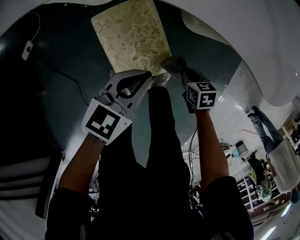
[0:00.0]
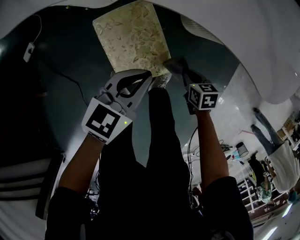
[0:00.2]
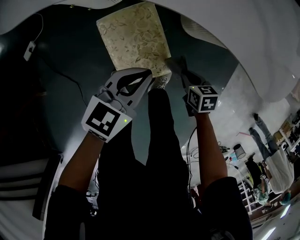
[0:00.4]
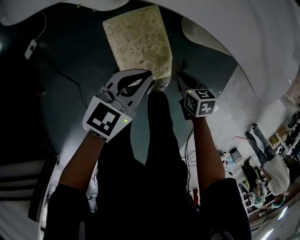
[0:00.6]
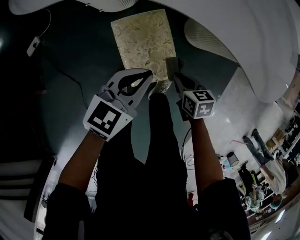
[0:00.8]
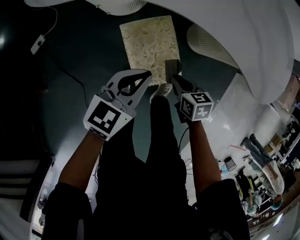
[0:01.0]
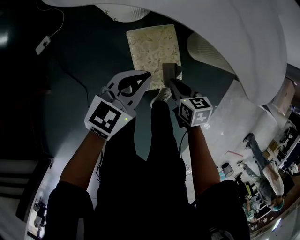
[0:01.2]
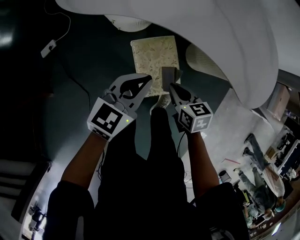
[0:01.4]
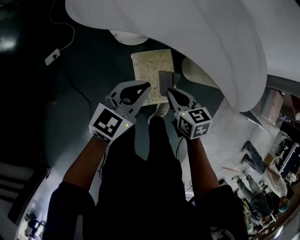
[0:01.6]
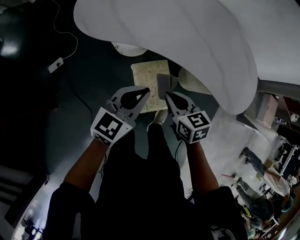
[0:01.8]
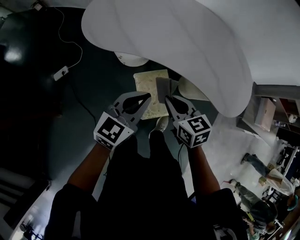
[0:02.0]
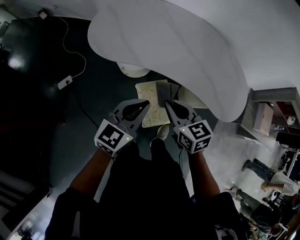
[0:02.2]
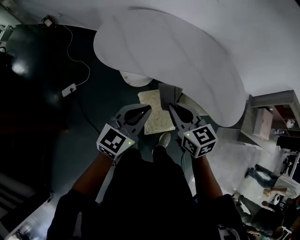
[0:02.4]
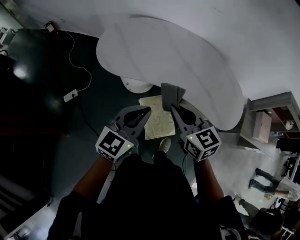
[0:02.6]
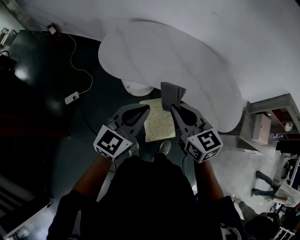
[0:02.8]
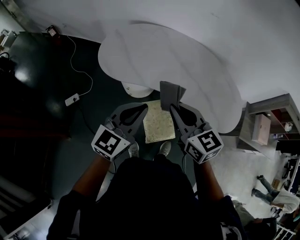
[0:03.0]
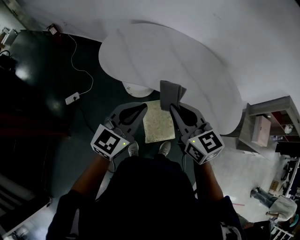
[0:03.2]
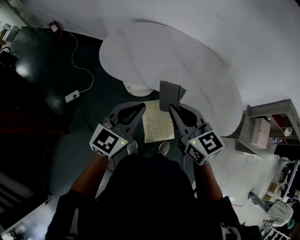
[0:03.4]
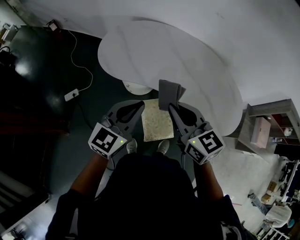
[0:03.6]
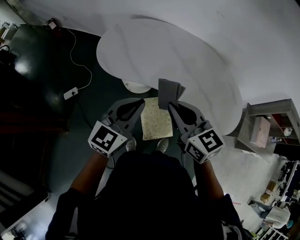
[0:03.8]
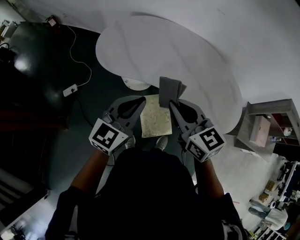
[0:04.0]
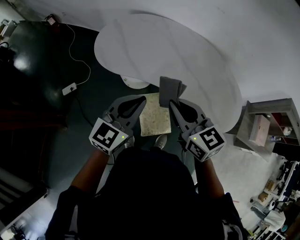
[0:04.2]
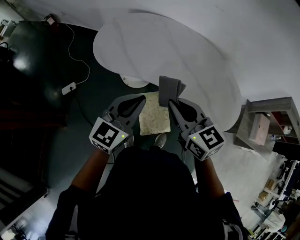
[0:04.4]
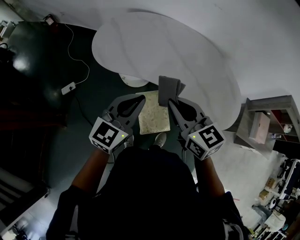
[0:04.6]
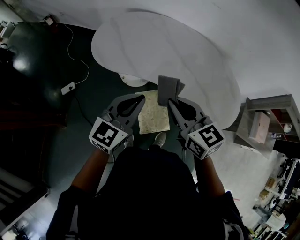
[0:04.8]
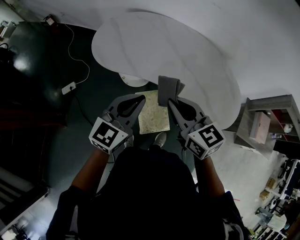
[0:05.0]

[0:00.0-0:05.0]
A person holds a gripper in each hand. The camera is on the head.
0.0 to 1.6 s: Both grippers move upward and to the left, some 30 cm. The left gripper swivels about 20 degrees, while the right gripper swivels some 30 degrees.
1.6 to 3.4 s: Both grippers move upward, roughly 30 cm. The right gripper rotates roughly 30 degrees.
3.4 to 5.0 s: There are only small adjustments of the grippers.

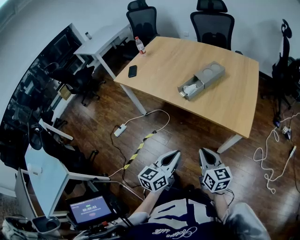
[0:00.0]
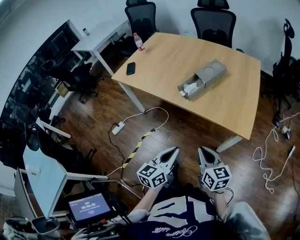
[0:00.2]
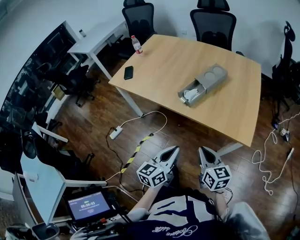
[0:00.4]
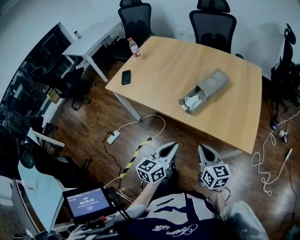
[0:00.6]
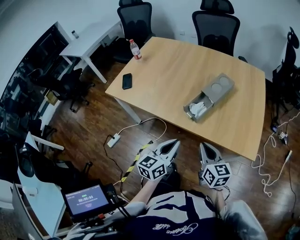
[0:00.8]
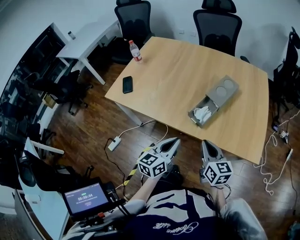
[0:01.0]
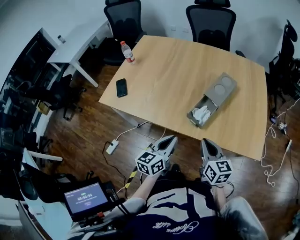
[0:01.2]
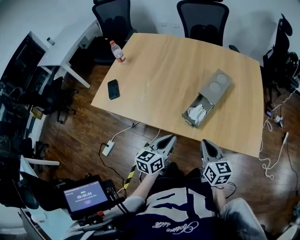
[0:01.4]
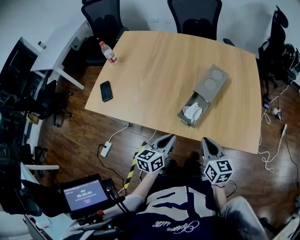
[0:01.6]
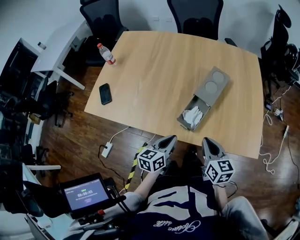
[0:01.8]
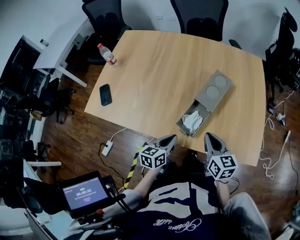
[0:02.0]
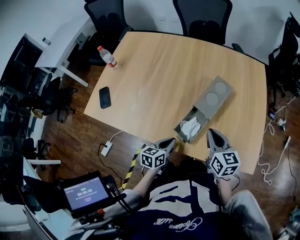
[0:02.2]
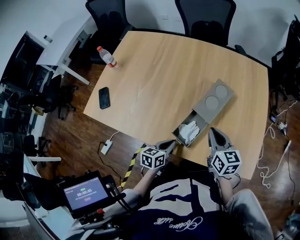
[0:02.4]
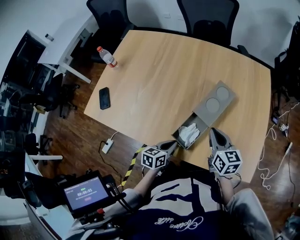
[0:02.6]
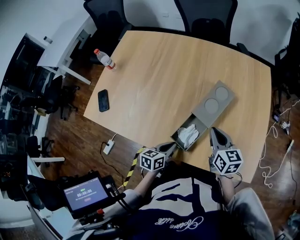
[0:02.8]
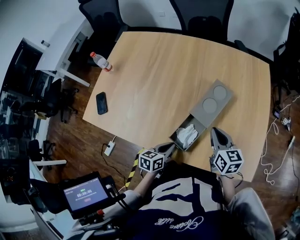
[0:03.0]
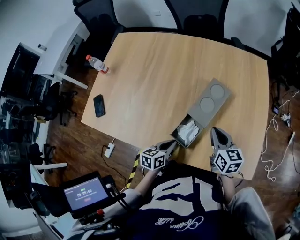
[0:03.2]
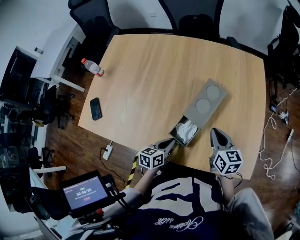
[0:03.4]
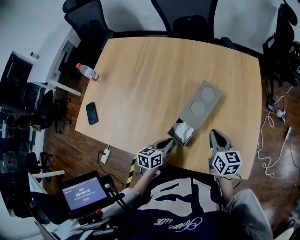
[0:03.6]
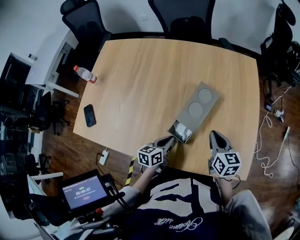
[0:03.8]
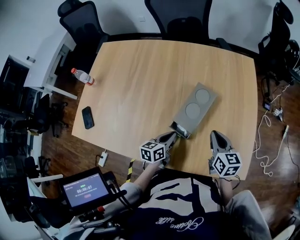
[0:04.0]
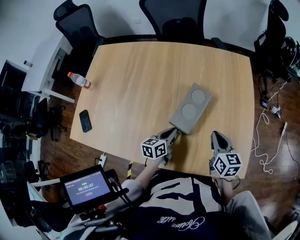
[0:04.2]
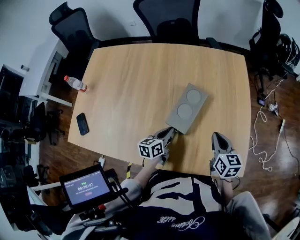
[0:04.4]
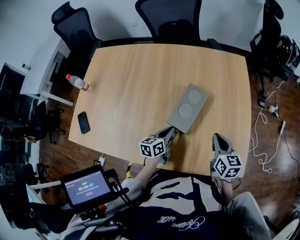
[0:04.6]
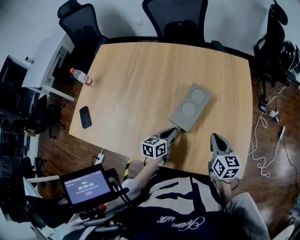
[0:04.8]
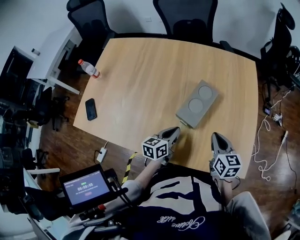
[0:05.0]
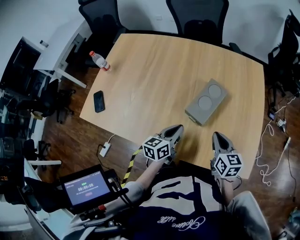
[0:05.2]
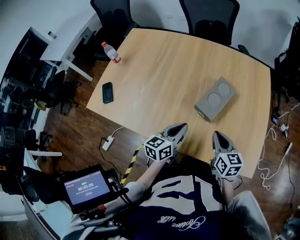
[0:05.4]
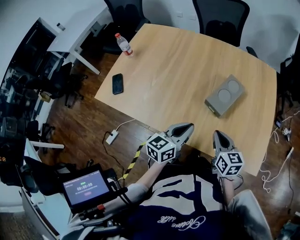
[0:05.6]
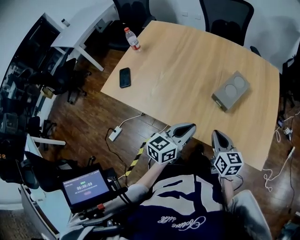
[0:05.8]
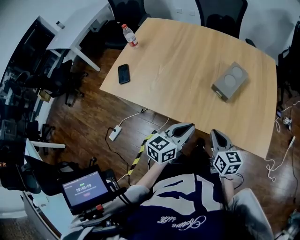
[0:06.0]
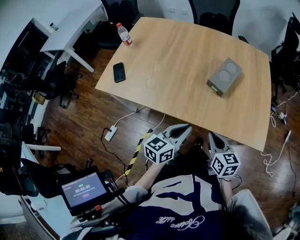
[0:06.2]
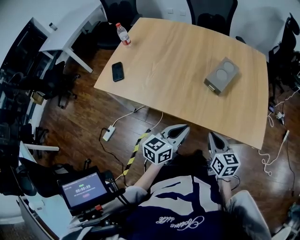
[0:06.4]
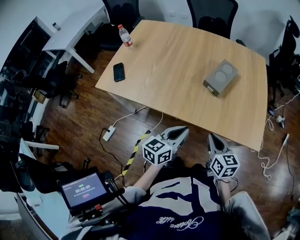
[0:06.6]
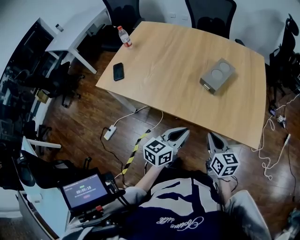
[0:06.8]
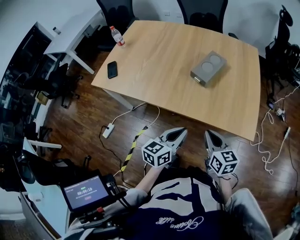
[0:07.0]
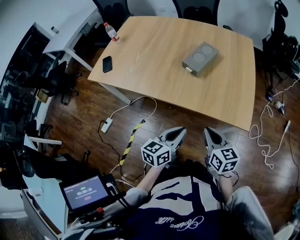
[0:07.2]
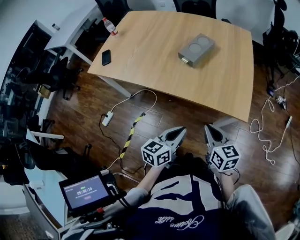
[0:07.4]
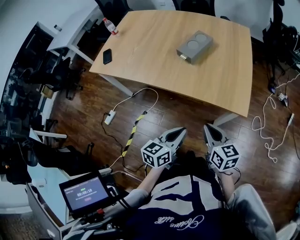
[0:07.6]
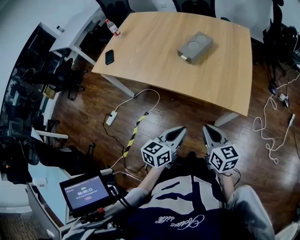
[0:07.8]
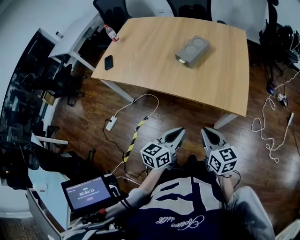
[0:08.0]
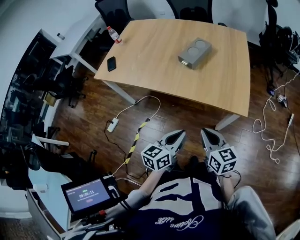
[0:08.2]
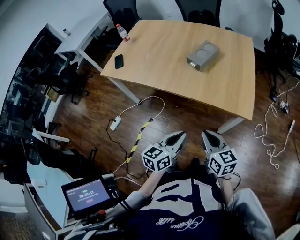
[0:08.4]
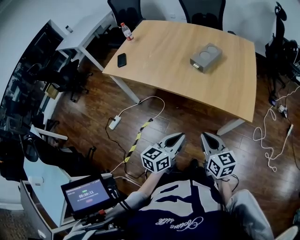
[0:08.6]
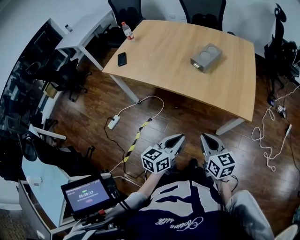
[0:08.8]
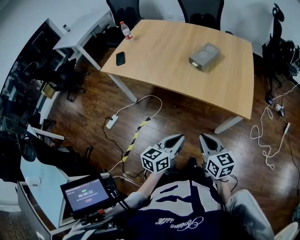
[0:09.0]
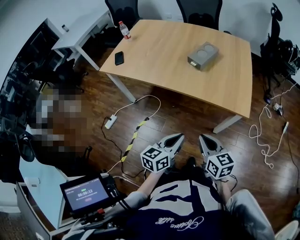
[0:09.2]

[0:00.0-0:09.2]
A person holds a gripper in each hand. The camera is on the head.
0.0 to 1.6 s: The left gripper goes roughly 35 cm forward and to the left. The right gripper heads forward, covering about 30 cm, and changes its angle by approximately 20 degrees.
1.6 to 3.0 s: The right gripper moves forward, some 20 cm. Meanwhile the left gripper travels forward and downward by about 15 cm.
3.0 to 4.6 s: The right gripper goes roughly 10 cm to the right. The left gripper moves forward and to the right, approximately 15 cm.
4.6 to 6.2 s: The right gripper heads backward and to the left, covering some 30 cm. The left gripper goes approximately 30 cm backward and upward.
6.2 to 7.6 s: Both grippers travel together to the right and backward, about 25 cm.
7.6 to 9.2 s: The grippers both shift to the left and backward by approximately 10 cm.

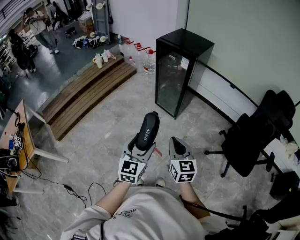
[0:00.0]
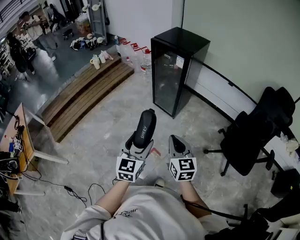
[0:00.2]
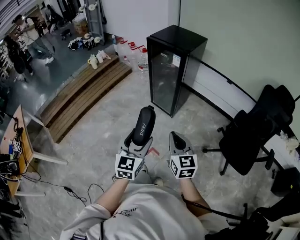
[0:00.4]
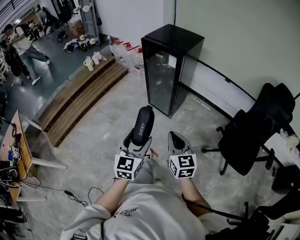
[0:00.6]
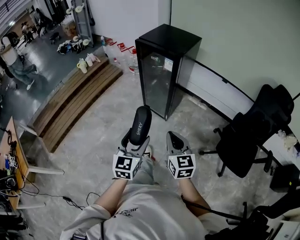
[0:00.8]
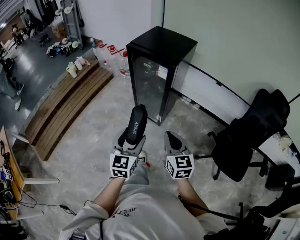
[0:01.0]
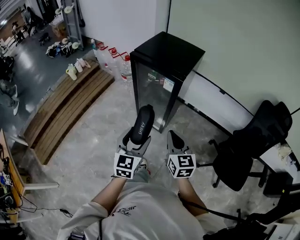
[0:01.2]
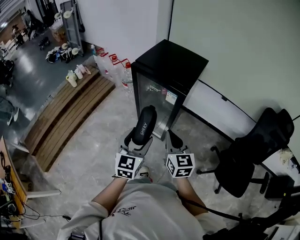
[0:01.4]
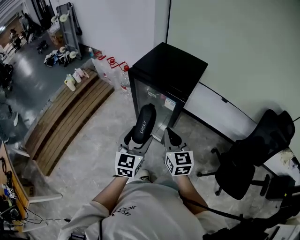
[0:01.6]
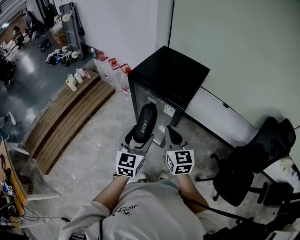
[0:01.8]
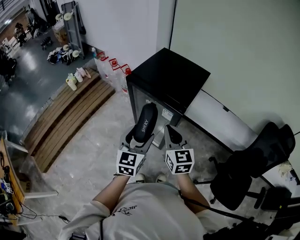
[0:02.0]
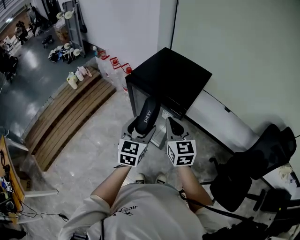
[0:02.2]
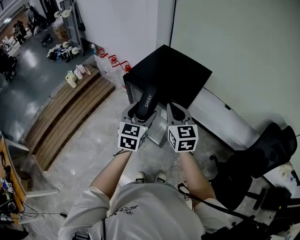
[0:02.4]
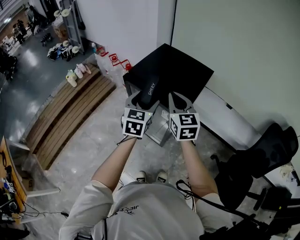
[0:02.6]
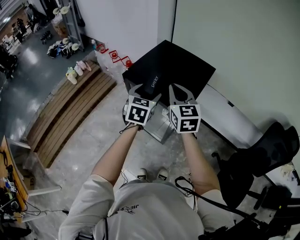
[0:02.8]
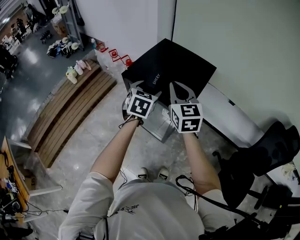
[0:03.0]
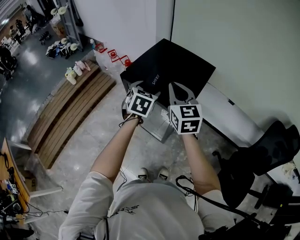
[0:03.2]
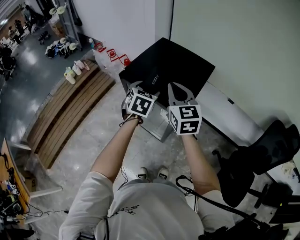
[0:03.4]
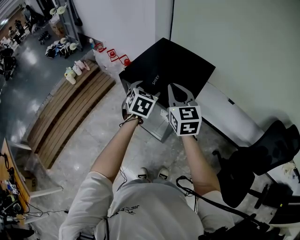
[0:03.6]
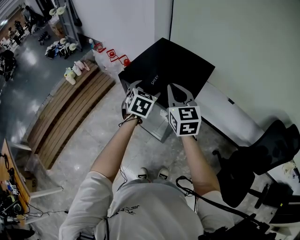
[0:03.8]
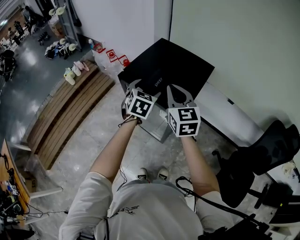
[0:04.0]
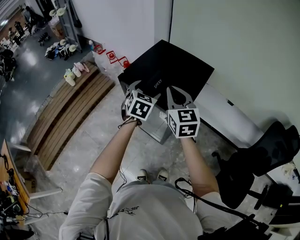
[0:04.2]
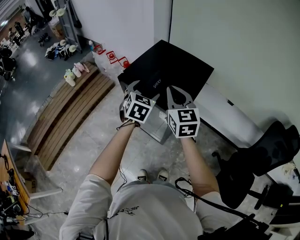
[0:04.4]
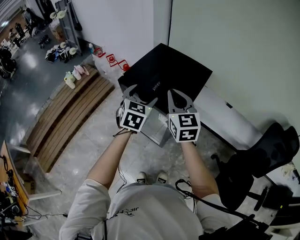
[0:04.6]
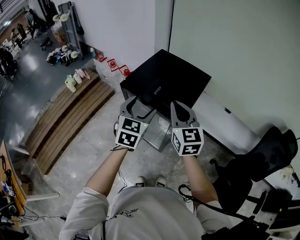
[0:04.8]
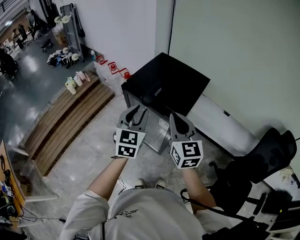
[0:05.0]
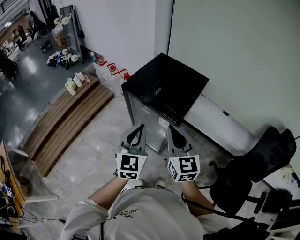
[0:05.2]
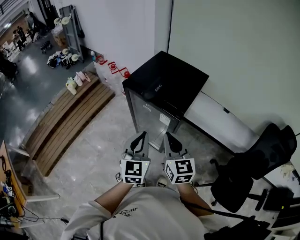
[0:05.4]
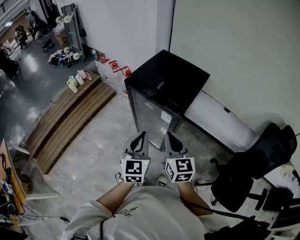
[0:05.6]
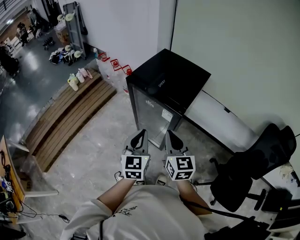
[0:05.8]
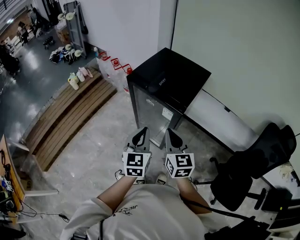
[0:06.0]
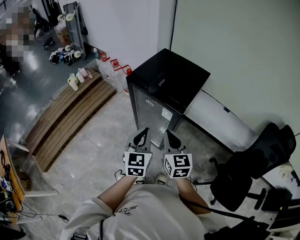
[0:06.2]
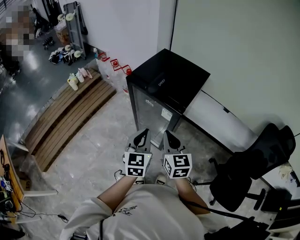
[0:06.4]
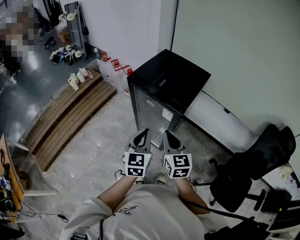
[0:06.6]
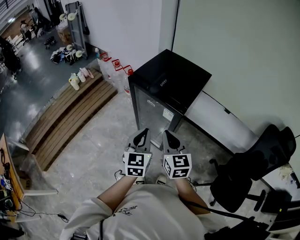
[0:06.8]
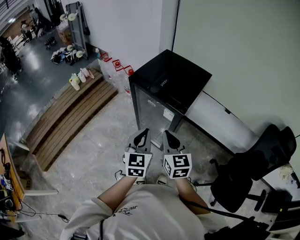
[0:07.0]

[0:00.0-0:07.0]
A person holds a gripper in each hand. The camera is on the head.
0.0 to 1.4 s: Both grippers move forward, approximately 35 cm.
1.4 to 2.8 s: Both grippers move forward, about 30 cm.
2.8 to 4.2 s: The grippers move only a little.
4.2 to 5.6 s: The two grippers go roughly 20 cm backward. The left gripper changes its angle by approximately 30 degrees, and closes.
5.6 to 7.0 s: The grippers stay close to where they were, moving slightly.

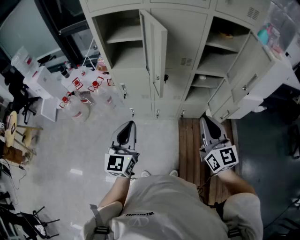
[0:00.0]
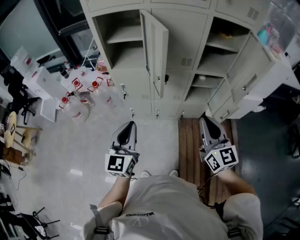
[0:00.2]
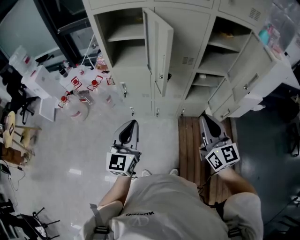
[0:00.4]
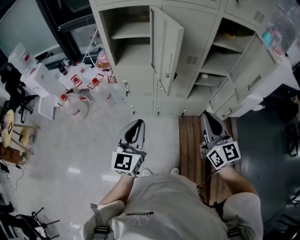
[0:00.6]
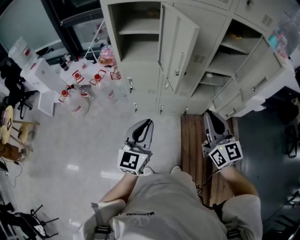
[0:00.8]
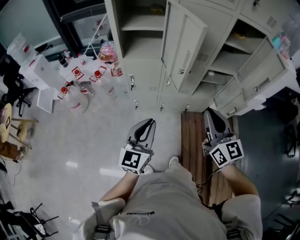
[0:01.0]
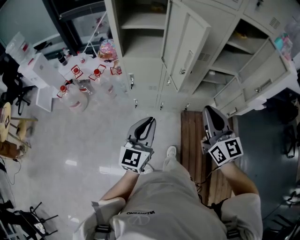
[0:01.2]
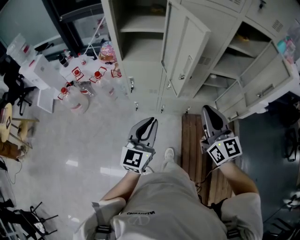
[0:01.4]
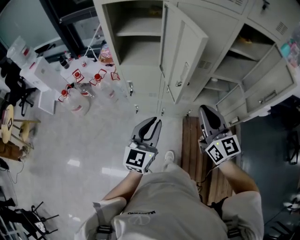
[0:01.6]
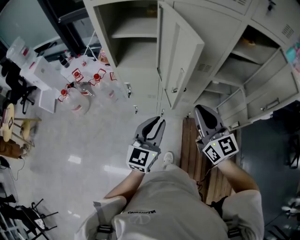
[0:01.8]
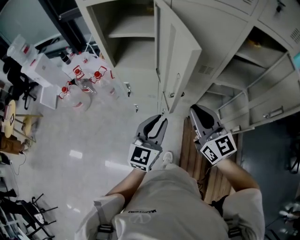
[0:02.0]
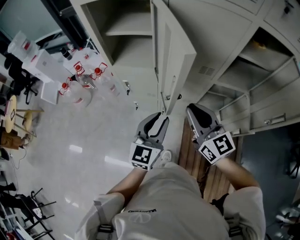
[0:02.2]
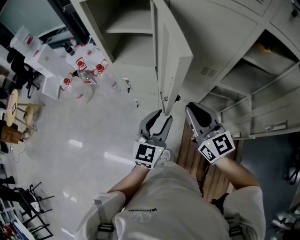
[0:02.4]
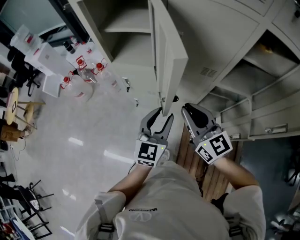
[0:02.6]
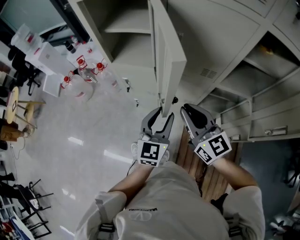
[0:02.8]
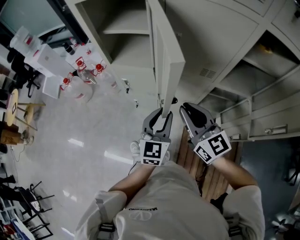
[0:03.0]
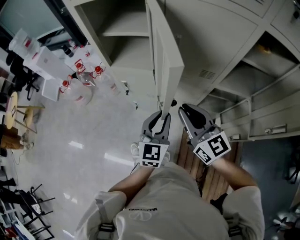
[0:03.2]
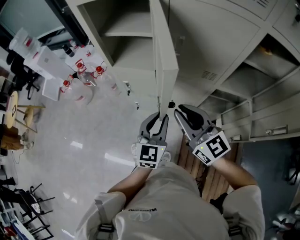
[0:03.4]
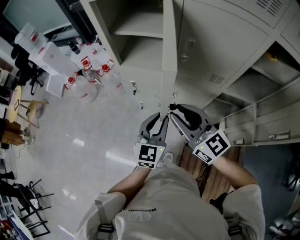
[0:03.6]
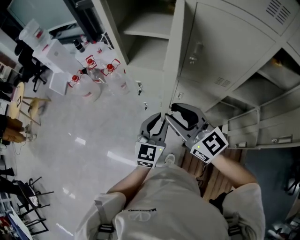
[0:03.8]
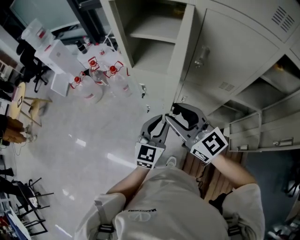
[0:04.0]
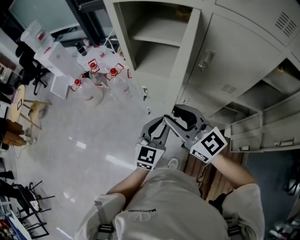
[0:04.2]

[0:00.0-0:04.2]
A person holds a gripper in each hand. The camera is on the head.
0.0 to 1.4 s: The left gripper changes place by some 5 cm. The right gripper moves to the left and forward, roughly 10 cm.
1.4 to 2.8 s: The right gripper is displaced forward by roughly 15 cm, and swivels about 20 degrees; the left gripper is displaced to the right and forward by roughly 20 cm, and opens up.
2.8 to 4.2 s: Both grippers move to the left, approximately 15 cm. The right gripper opens up.
